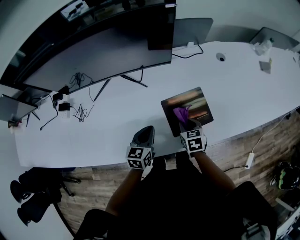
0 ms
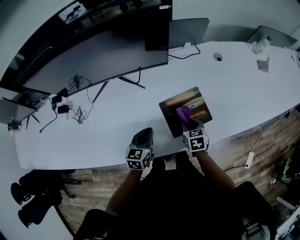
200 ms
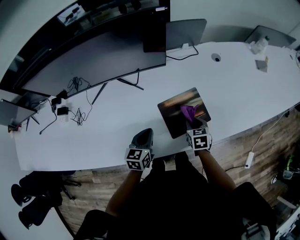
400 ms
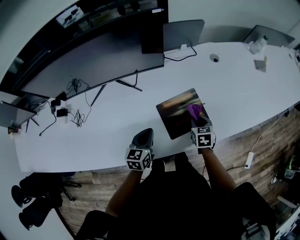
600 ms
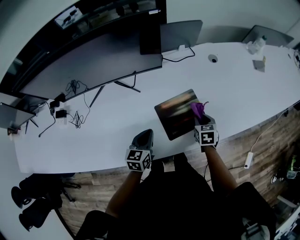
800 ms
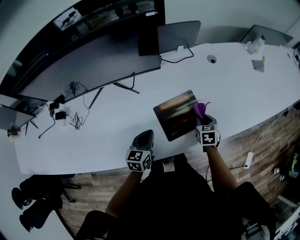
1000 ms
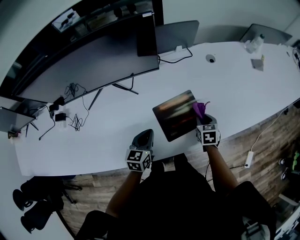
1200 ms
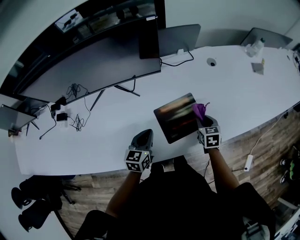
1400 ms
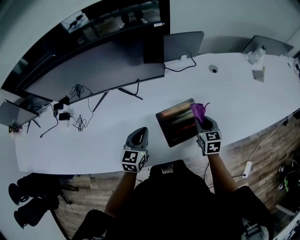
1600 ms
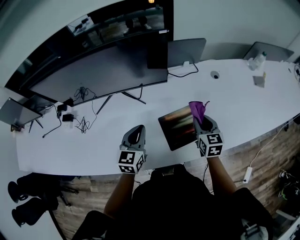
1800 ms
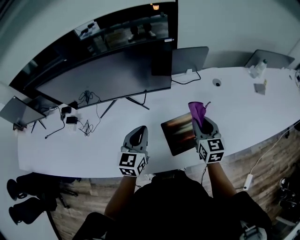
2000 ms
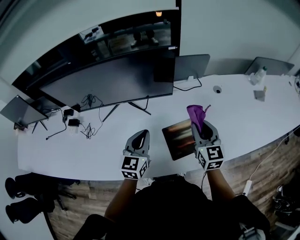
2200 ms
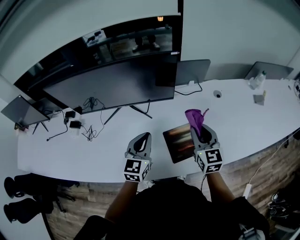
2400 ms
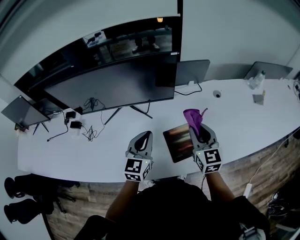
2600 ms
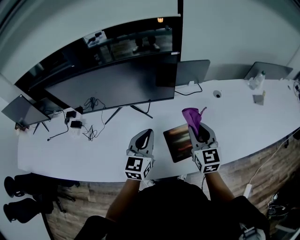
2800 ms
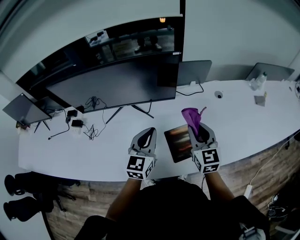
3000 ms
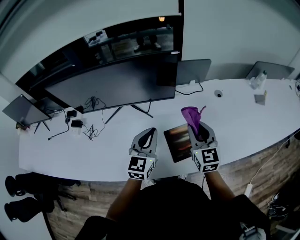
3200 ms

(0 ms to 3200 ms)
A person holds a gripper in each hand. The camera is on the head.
0 ms - 1600 ms: The right gripper shifts roughly 15 cm to the right, upward and forward. The left gripper goes roughly 5 cm upward.
1600 ms - 3200 ms: The left gripper travels upward by about 15 cm; the right gripper moves upward and to the left, some 20 cm, and changes its angle by about 30 degrees.

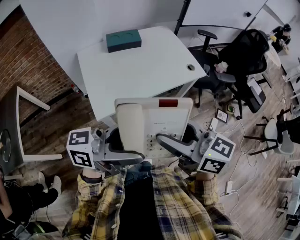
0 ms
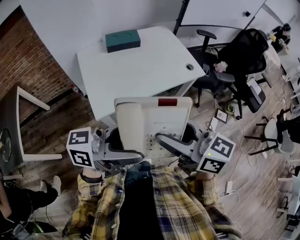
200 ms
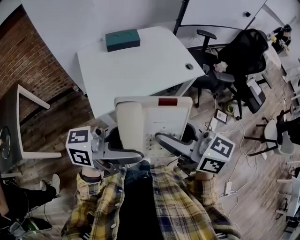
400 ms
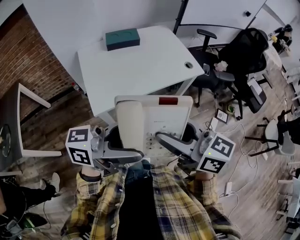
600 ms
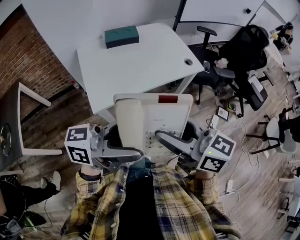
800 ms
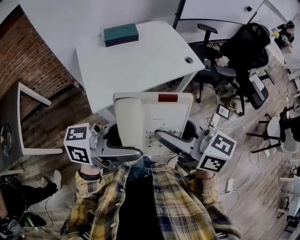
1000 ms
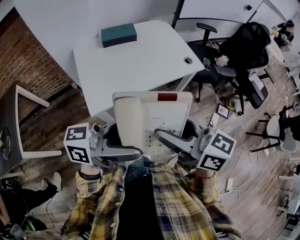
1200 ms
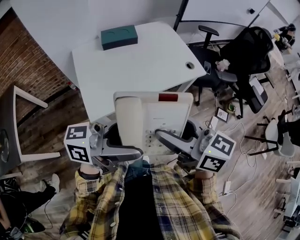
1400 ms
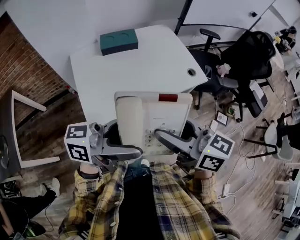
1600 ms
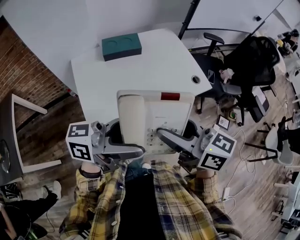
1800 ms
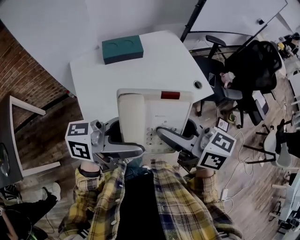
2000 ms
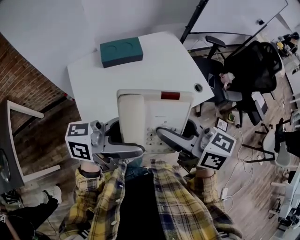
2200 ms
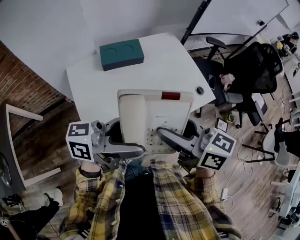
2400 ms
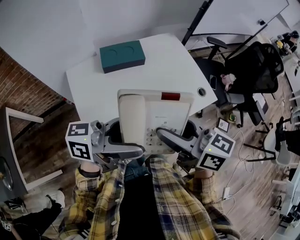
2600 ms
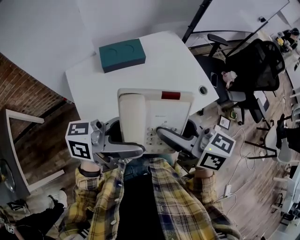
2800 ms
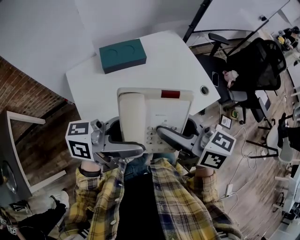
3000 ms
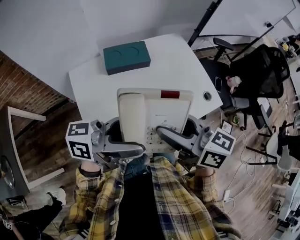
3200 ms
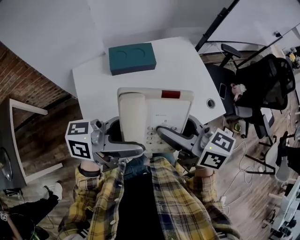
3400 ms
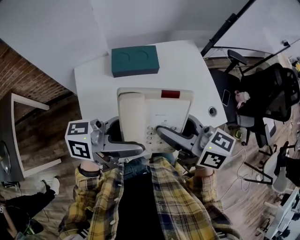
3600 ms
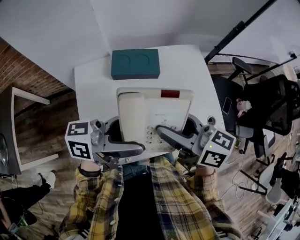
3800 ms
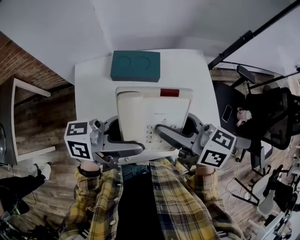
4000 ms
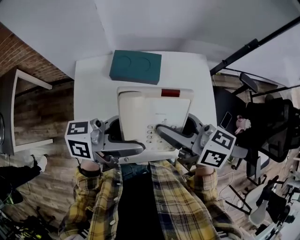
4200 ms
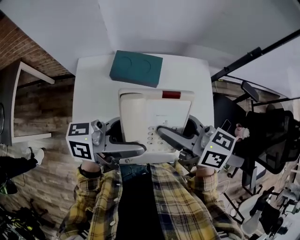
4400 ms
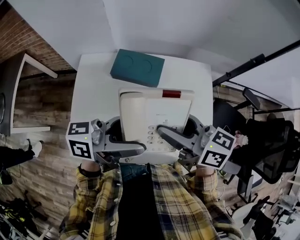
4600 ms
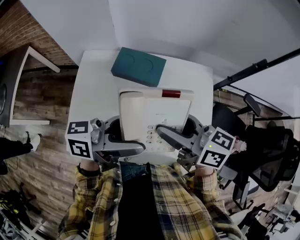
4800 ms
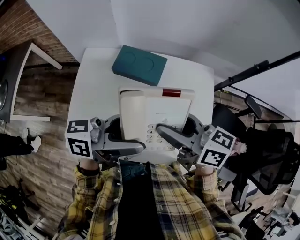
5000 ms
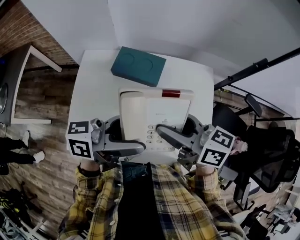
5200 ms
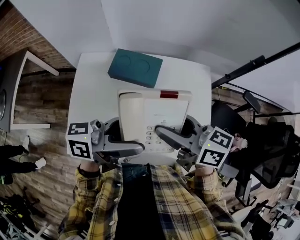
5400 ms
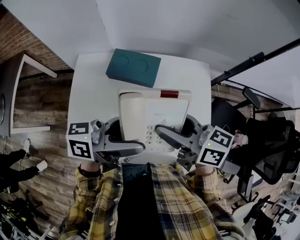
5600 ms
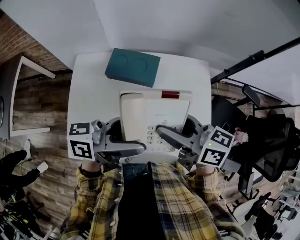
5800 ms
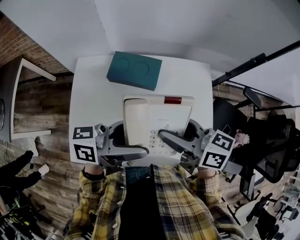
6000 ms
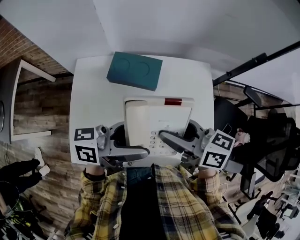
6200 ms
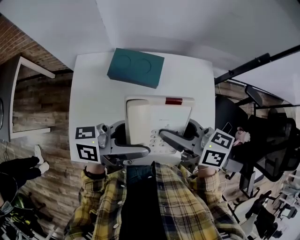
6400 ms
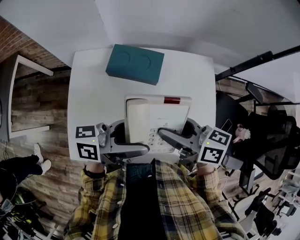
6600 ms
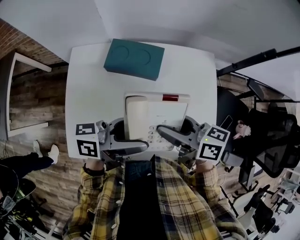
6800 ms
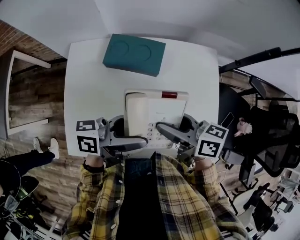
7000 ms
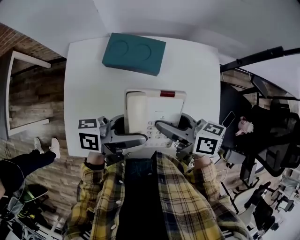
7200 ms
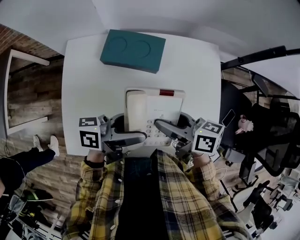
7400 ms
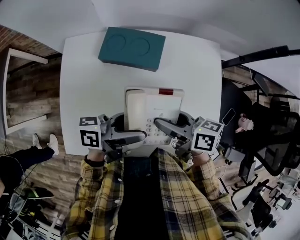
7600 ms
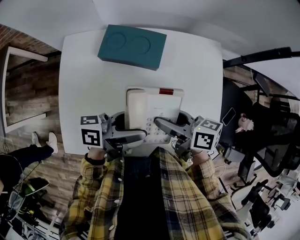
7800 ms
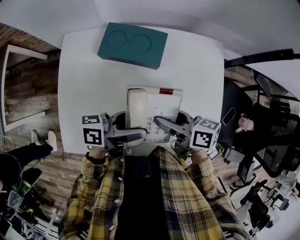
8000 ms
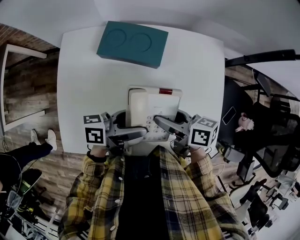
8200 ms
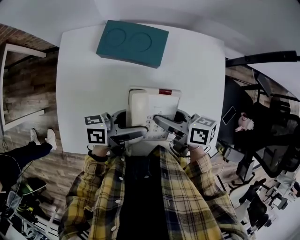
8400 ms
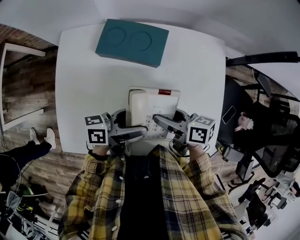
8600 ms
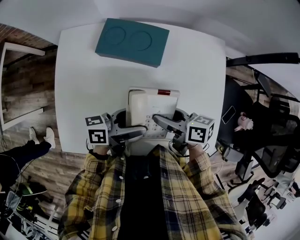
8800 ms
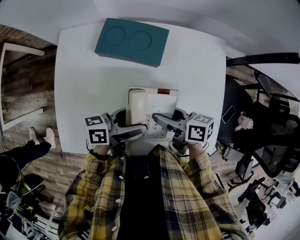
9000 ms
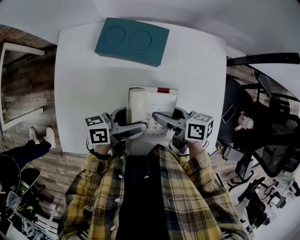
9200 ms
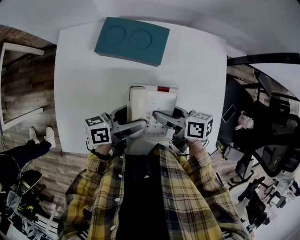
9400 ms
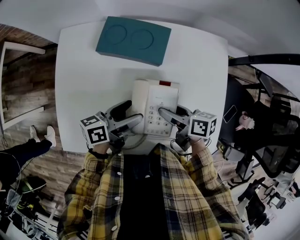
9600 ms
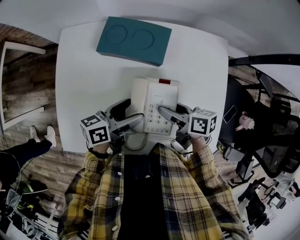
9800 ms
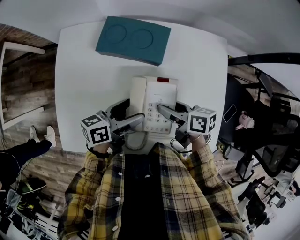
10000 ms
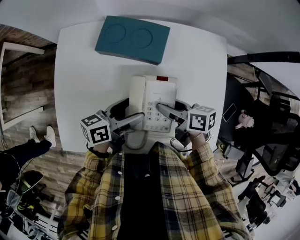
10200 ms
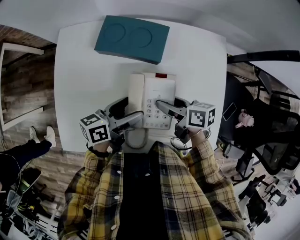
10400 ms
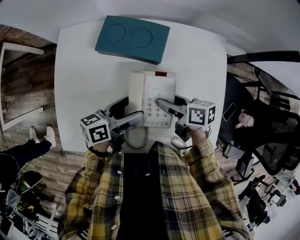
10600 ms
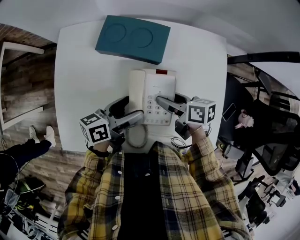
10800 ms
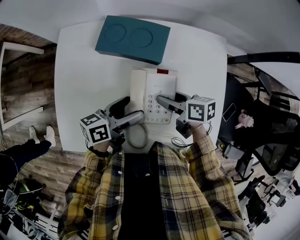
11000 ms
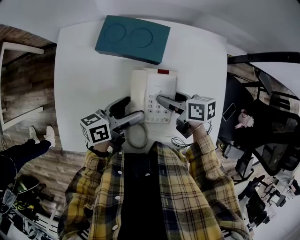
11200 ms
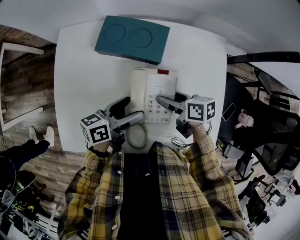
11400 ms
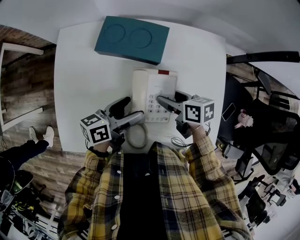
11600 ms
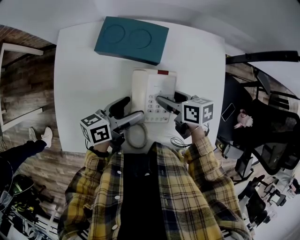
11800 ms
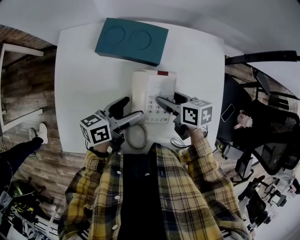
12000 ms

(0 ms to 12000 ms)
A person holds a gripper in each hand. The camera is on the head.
0 ms - 1600 ms: The right gripper moves some 10 cm. Meanwhile the left gripper shifts by approximately 10 cm.
1600 ms - 3000 ms: The right gripper changes place by roughly 20 cm. Meanwhile the left gripper changes place by about 20 cm.
3000 ms - 4400 ms: The right gripper ends up some 20 cm from where it was, and swivels some 30 degrees, while the left gripper shifts by about 20 cm, and turns by some 30 degrees.
4400 ms - 6000 ms: The grippers move only a little.
6000 ms - 7600 ms: The two grippers go approximately 15 cm downward.
7600 ms - 9000 ms: The grippers both shift downward by roughly 10 cm.
9000 ms - 10400 ms: The grippers stay close to where they were, moving slightly.
10400 ms - 12000 ms: There are only small adjustments of the grippers.

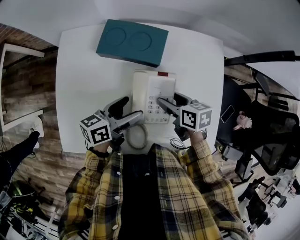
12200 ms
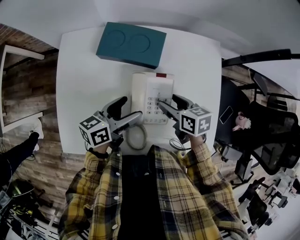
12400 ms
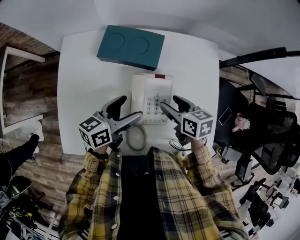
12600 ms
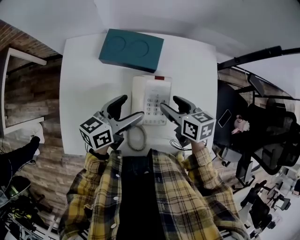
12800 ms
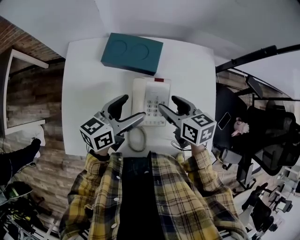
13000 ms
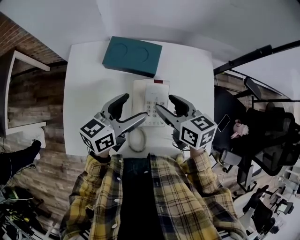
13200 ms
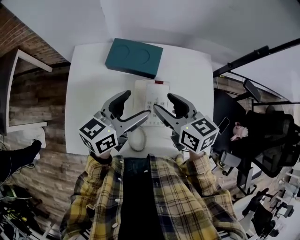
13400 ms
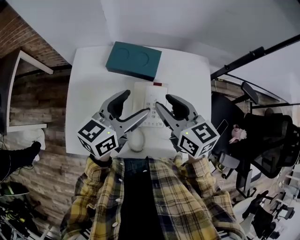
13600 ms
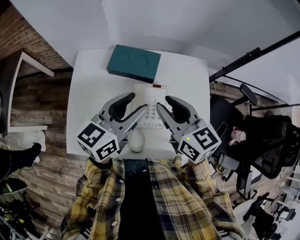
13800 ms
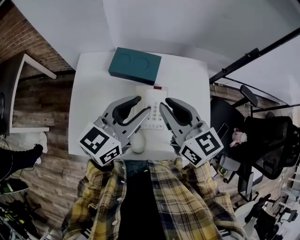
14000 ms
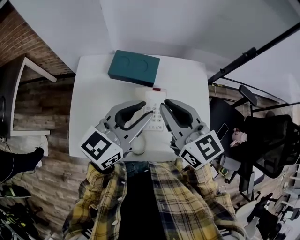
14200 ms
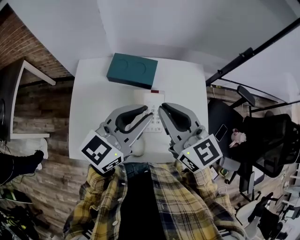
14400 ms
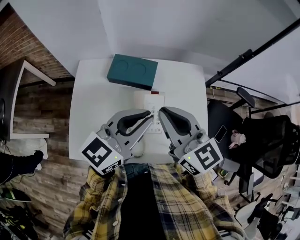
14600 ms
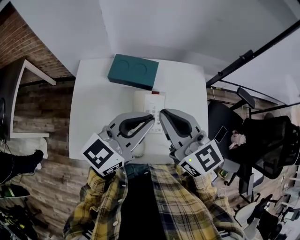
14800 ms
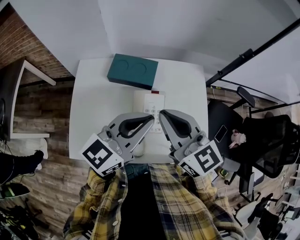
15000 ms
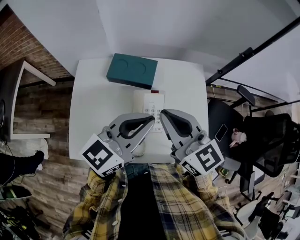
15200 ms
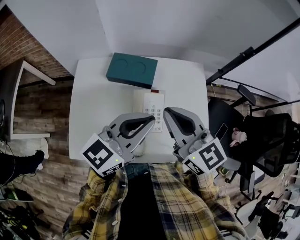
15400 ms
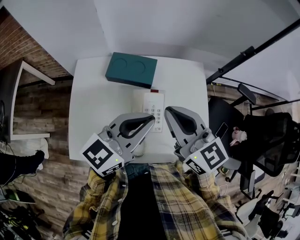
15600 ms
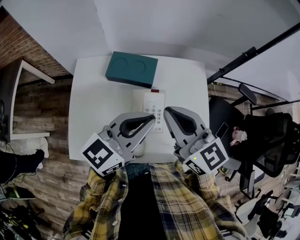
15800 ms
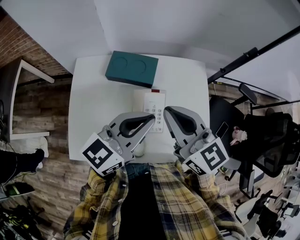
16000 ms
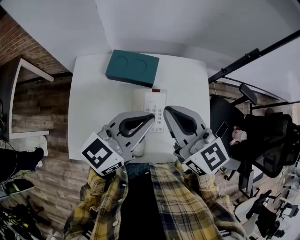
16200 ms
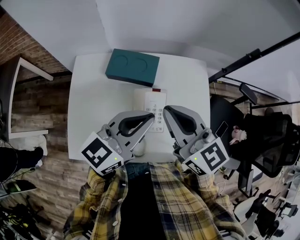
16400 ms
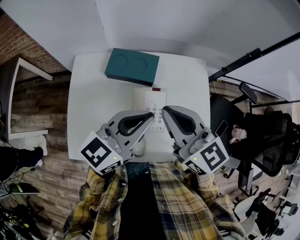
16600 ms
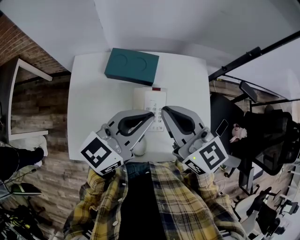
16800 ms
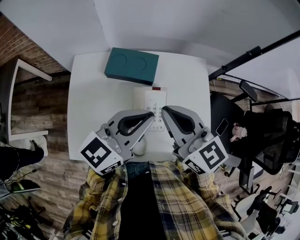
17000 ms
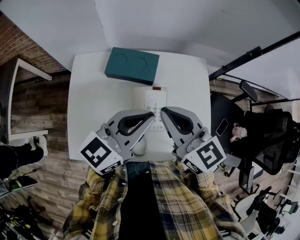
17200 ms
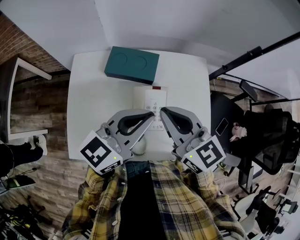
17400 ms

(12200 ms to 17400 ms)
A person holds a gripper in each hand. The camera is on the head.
12200 ms - 14000 ms: Both grippers travel together upward, roughly 25 cm. The left gripper turns by some 40 degrees, and closes its fingers, while the right gripper points its fingers some 30 degrees further upward, and closes up.
14000 ms - 15600 ms: The left gripper closes up.
15600 ms - 17400 ms: The grippers stay close to where they were, moving slightly.

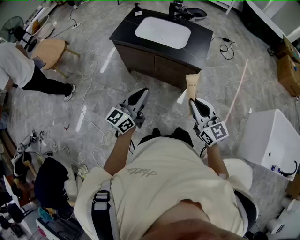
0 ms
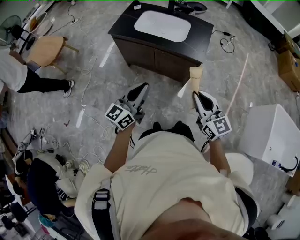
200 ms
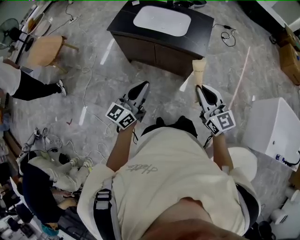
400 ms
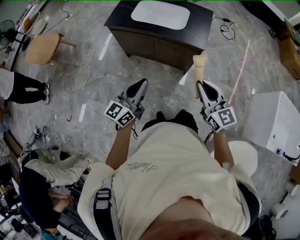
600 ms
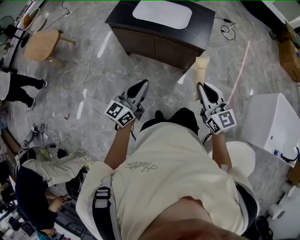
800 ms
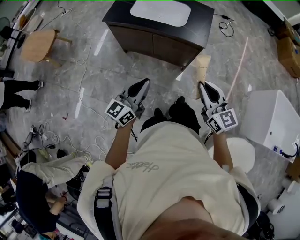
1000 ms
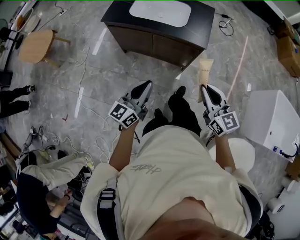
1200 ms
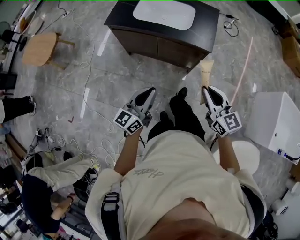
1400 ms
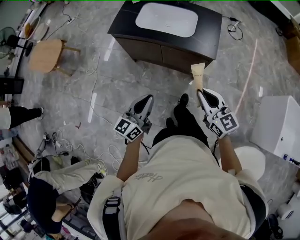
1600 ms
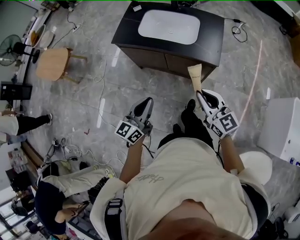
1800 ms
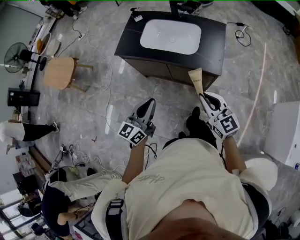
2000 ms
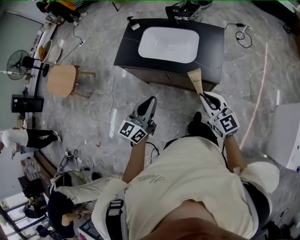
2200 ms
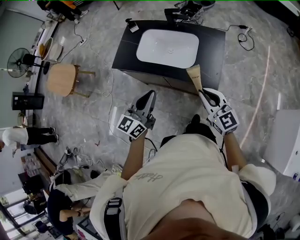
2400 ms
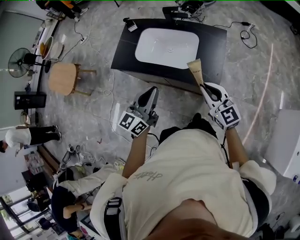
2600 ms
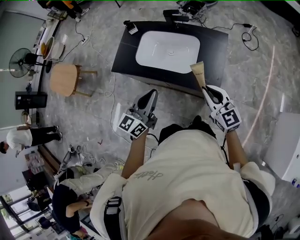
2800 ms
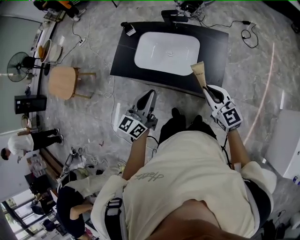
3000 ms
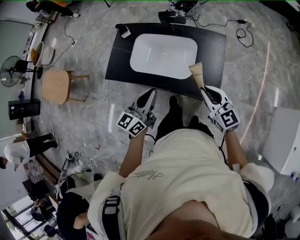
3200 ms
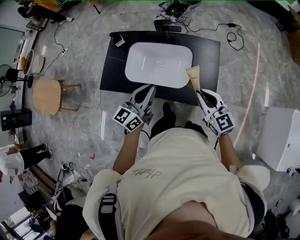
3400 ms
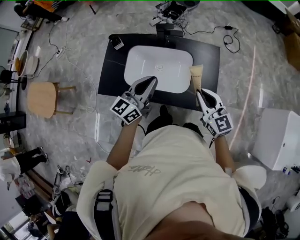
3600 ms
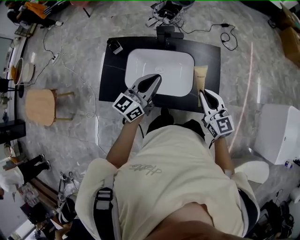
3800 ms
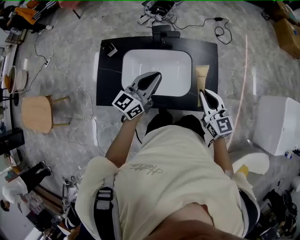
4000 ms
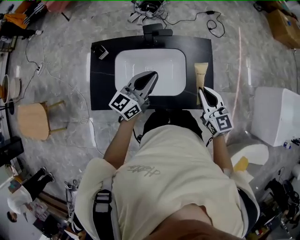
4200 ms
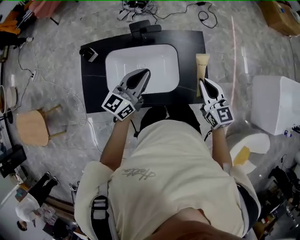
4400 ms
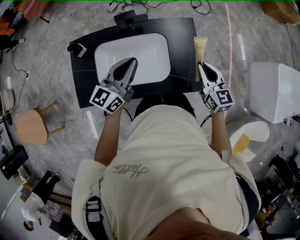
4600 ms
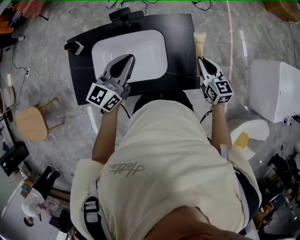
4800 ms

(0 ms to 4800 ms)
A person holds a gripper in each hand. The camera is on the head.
0 ms - 1600 ms: The right gripper shifts about 10 cm forward; the left gripper travels downward and forward by roughly 10 cm.
1600 ms - 3200 ms: Both grippers travel together forward, about 35 cm.
3200 ms - 4800 ms: The right gripper moves some 20 cm, and turns by approximately 40 degrees. The left gripper shifts by some 25 cm, and turns by approximately 20 degrees.
